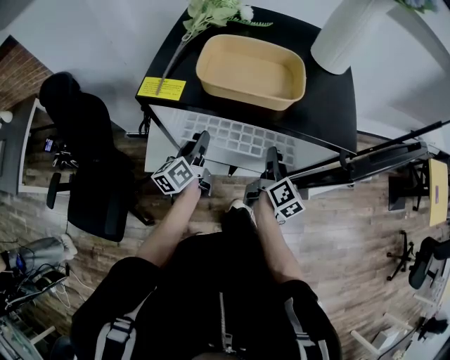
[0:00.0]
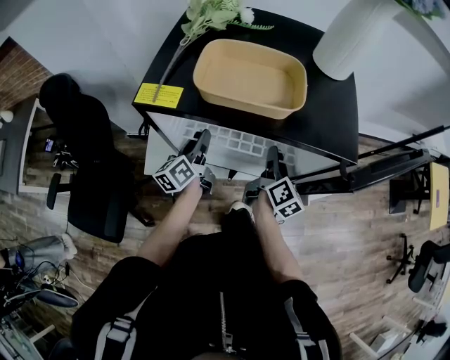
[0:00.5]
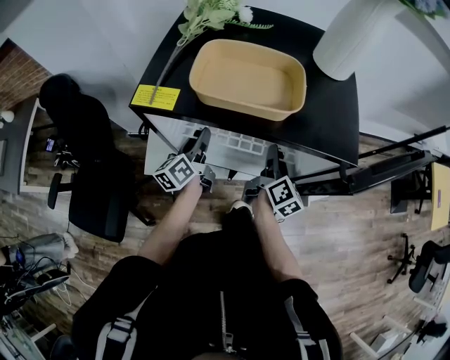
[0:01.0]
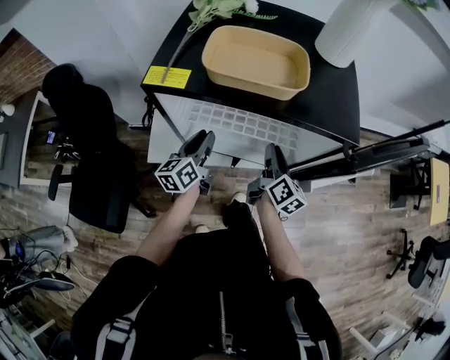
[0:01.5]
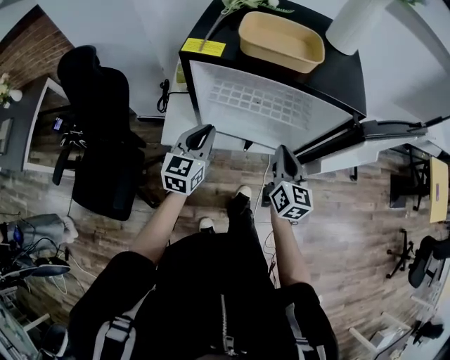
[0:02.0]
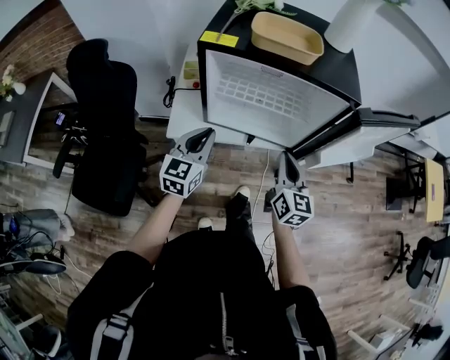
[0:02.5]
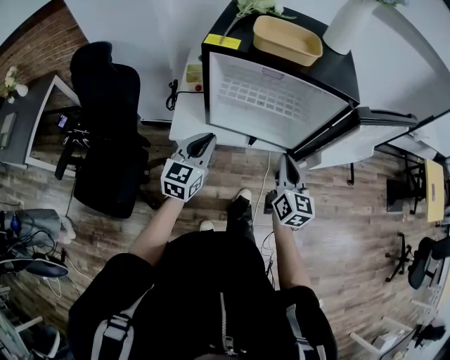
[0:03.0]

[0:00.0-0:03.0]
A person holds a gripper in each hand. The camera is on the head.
0:00.0 to 0:01.5: The grippers make only small movements.
0:01.5 to 0:03.0: The left gripper travels backward and upward by roughly 20 cm, turns by approximately 30 degrees, and closes its fingers, while the right gripper is displaced backward by about 15 cm, rotates some 30 degrees, and closes its fingers.

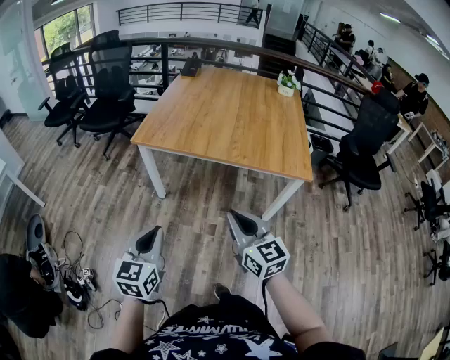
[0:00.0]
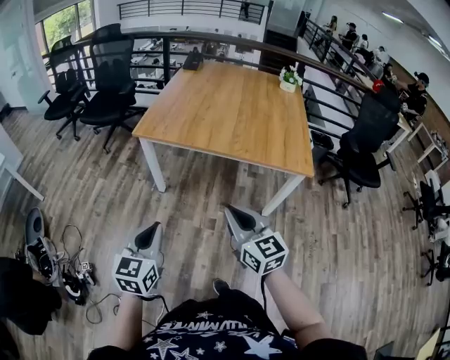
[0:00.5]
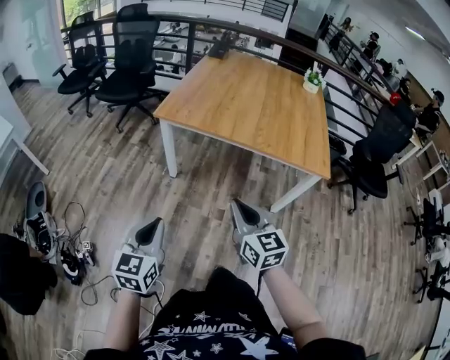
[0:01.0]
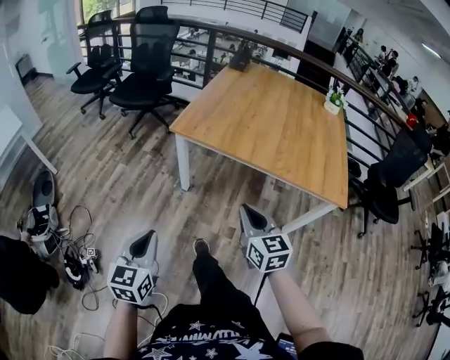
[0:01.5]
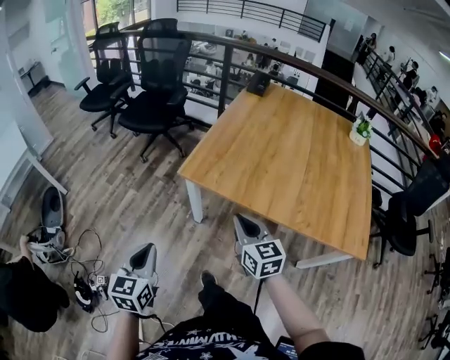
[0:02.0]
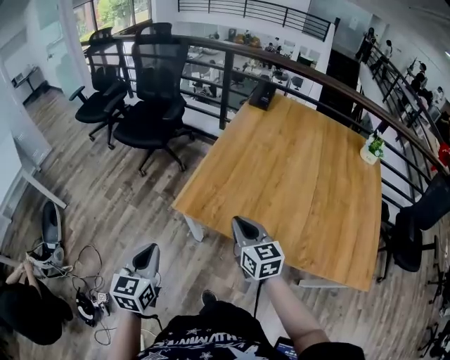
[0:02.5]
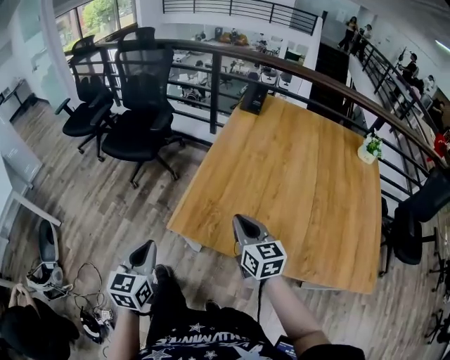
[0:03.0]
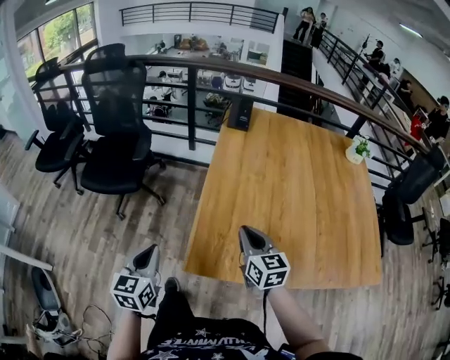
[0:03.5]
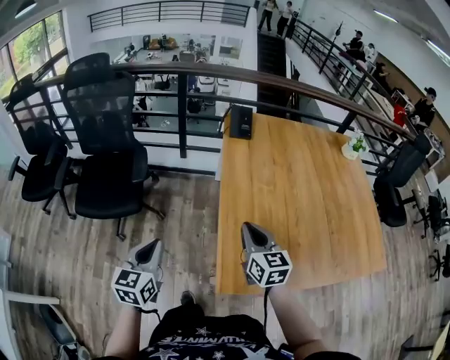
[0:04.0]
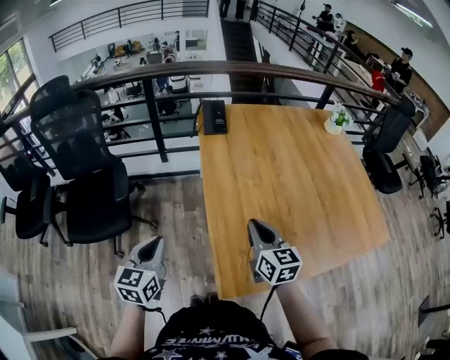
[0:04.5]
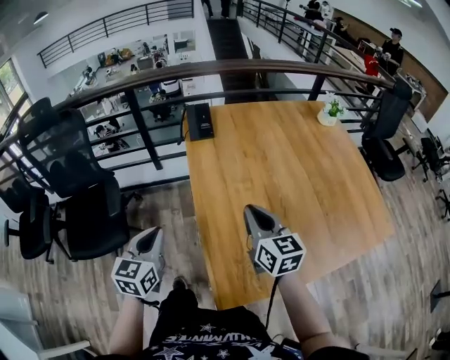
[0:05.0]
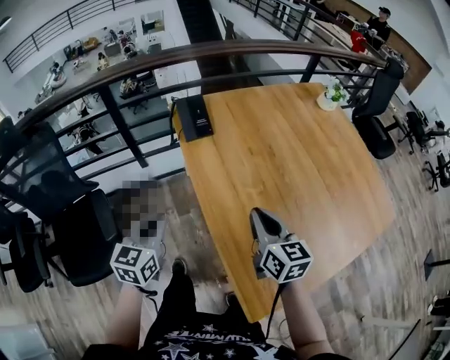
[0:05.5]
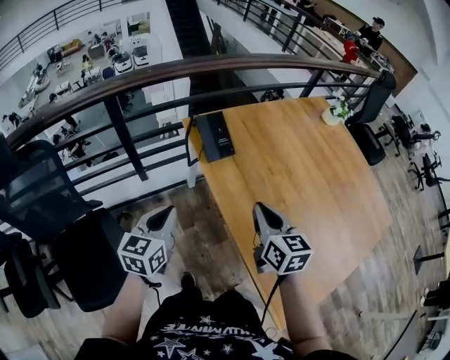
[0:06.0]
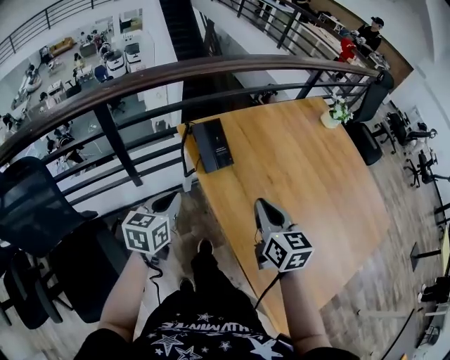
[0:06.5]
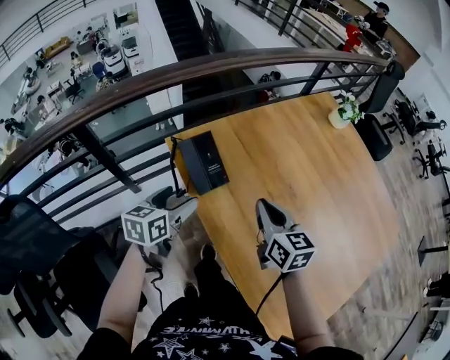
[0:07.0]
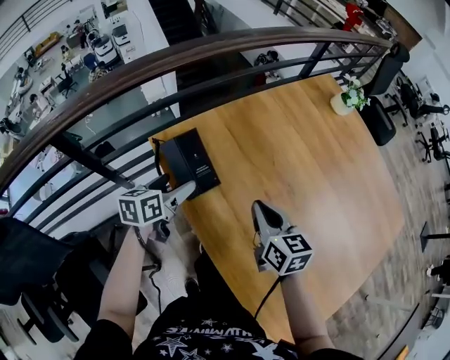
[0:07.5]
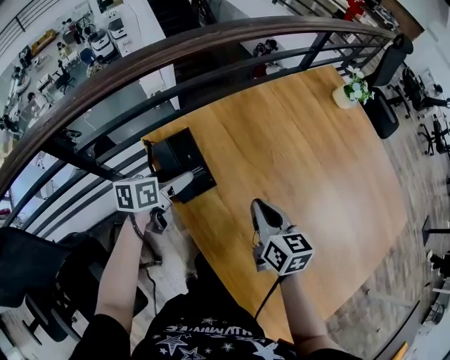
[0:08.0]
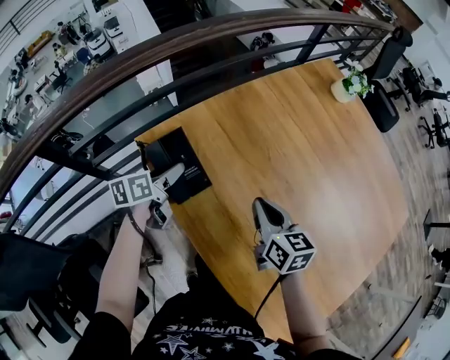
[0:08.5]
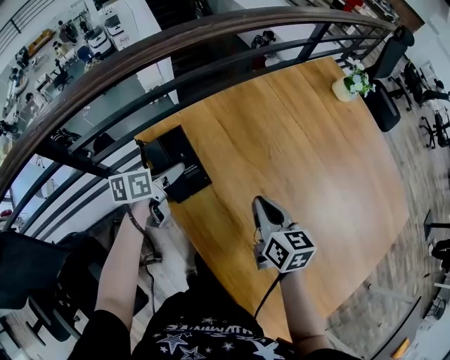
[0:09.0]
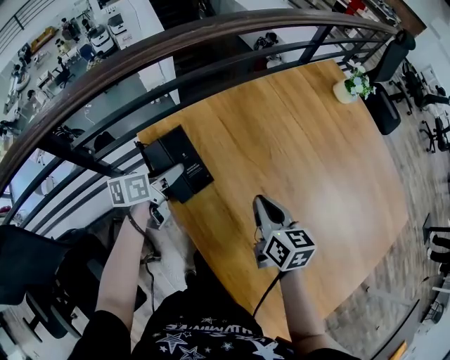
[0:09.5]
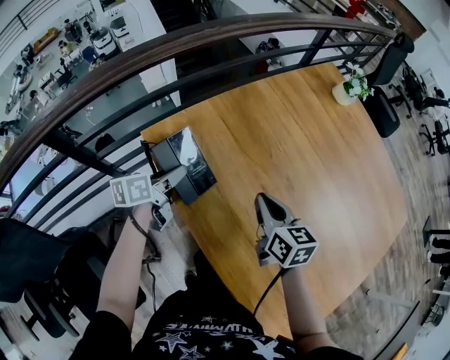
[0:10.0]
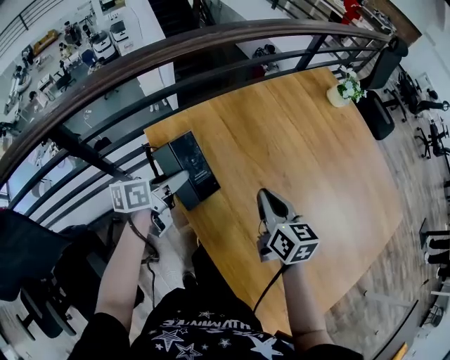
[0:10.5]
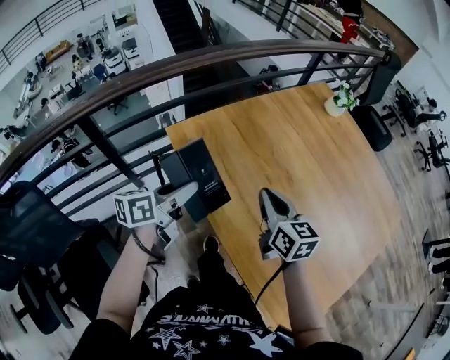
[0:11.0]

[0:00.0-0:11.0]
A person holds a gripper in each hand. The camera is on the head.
0:00.0 to 0:02.0: The grippers both shift forward and to the left by roughly 30 cm.
0:02.0 to 0:03.5: Both grippers move forward, about 40 cm. The right gripper changes its angle by some 20 degrees.
0:03.5 to 0:05.5: The left gripper shifts by approximately 40 cm, and turns by approximately 40 degrees. The right gripper shifts by roughly 25 cm, and rotates roughly 30 degrees.
0:05.5 to 0:07.5: The grippers both shift forward by some 30 cm. The left gripper changes its angle by roughly 30 degrees, and opens its fingers.
0:07.5 to 0:09.0: The left gripper changes place by roughly 5 cm, and closes up.
0:09.0 to 0:11.0: The right gripper is displaced upward and backward by some 10 cm, while the left gripper is displaced backward and upward by roughly 20 cm.

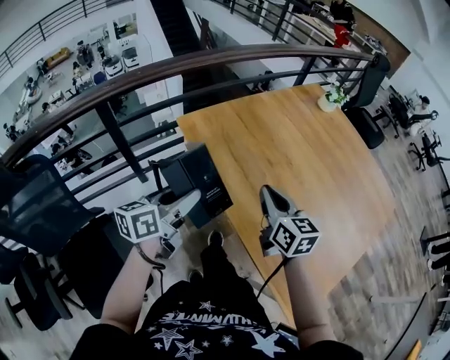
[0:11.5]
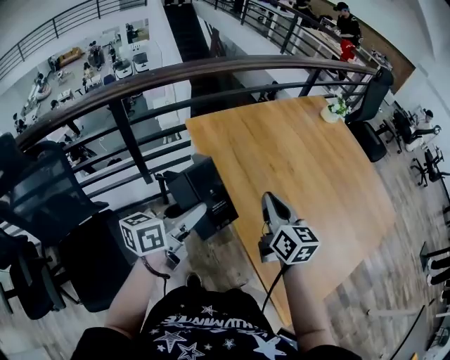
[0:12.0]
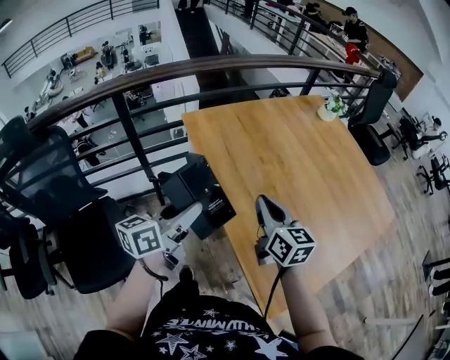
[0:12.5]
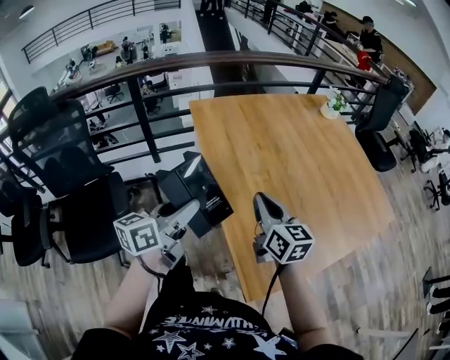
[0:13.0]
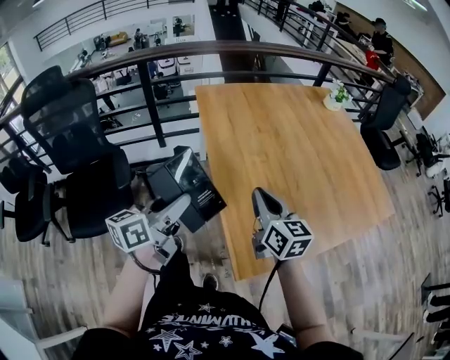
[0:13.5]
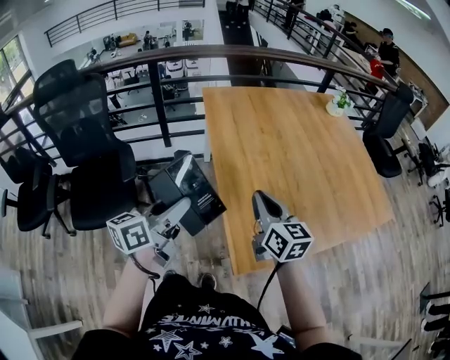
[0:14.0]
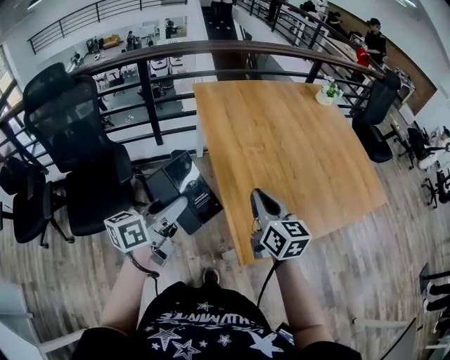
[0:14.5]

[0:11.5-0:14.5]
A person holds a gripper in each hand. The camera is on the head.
0:11.5 to 0:13.0: The grippers both shift backward and to the right by some 25 cm.
0:13.0 to 0:14.5: Both grippers travel together backward, about 15 cm.

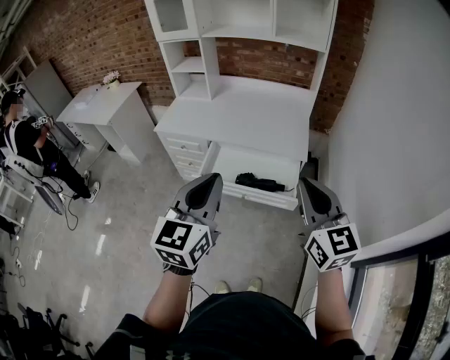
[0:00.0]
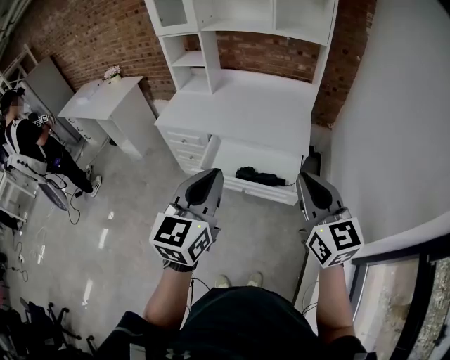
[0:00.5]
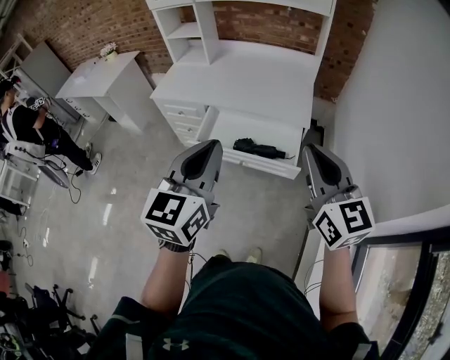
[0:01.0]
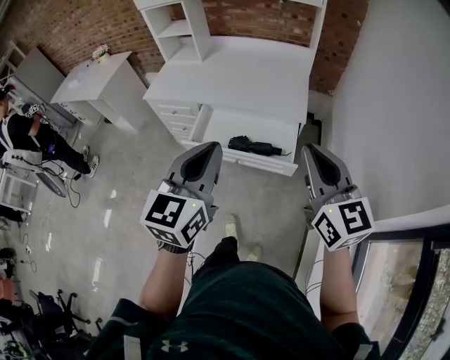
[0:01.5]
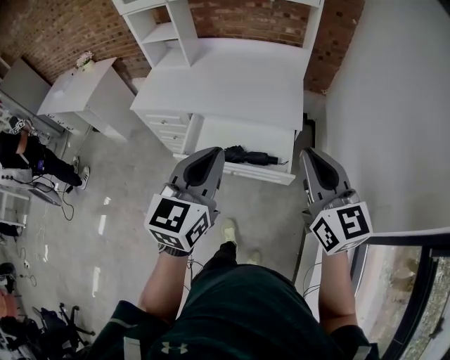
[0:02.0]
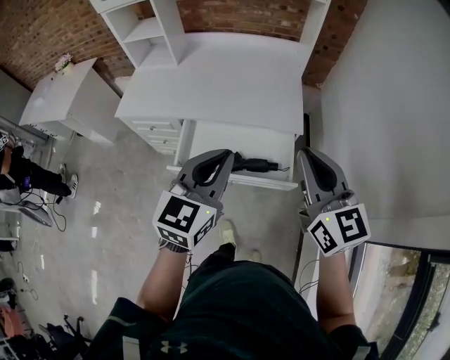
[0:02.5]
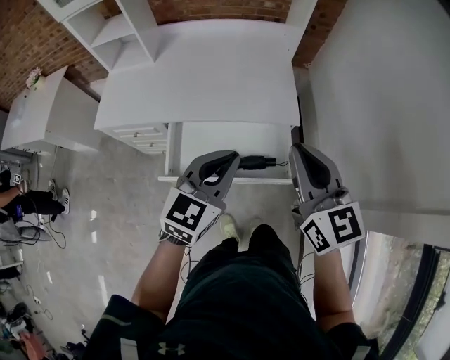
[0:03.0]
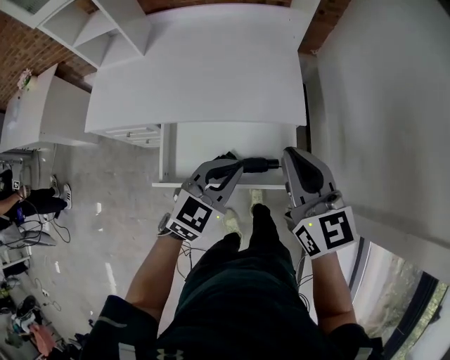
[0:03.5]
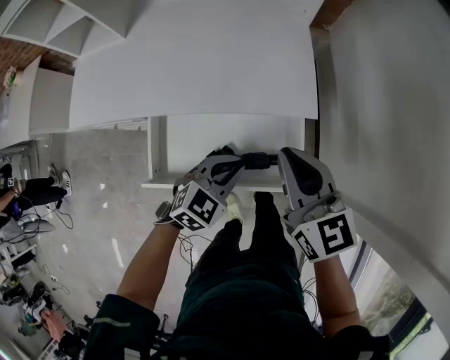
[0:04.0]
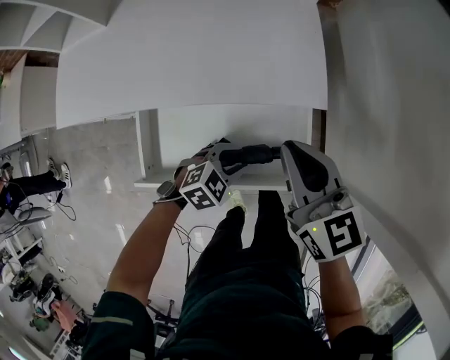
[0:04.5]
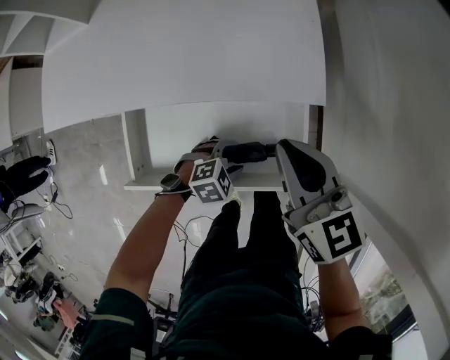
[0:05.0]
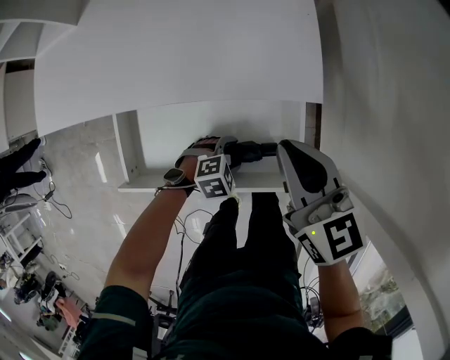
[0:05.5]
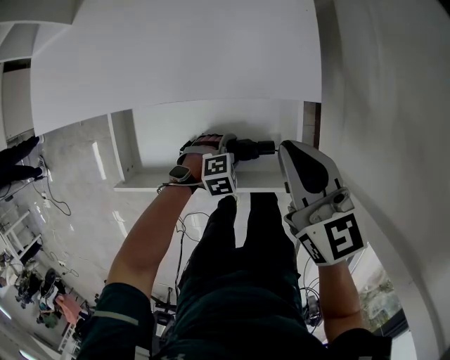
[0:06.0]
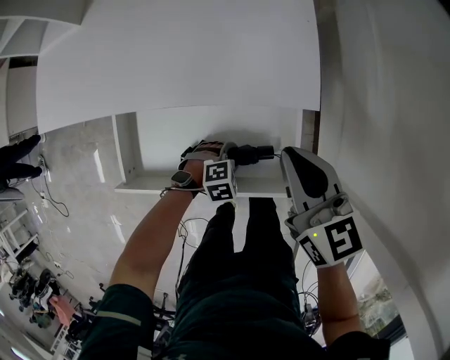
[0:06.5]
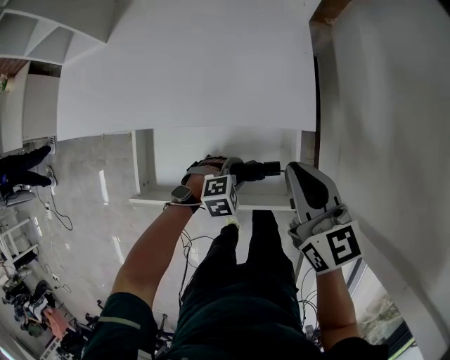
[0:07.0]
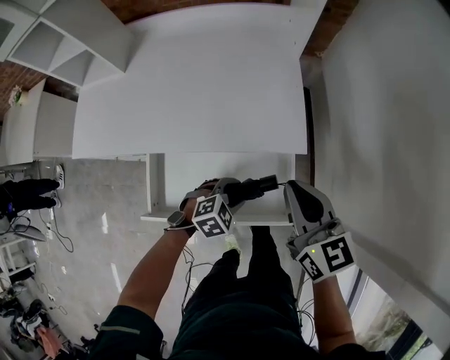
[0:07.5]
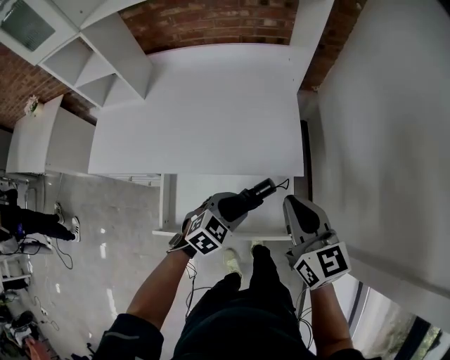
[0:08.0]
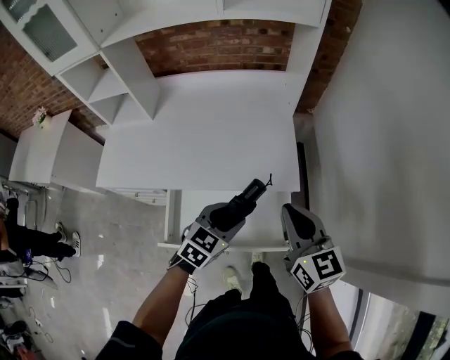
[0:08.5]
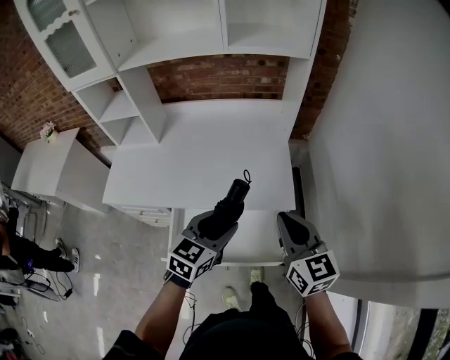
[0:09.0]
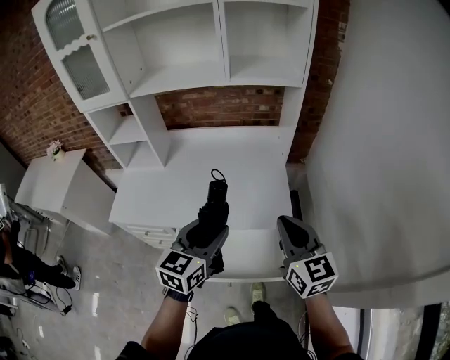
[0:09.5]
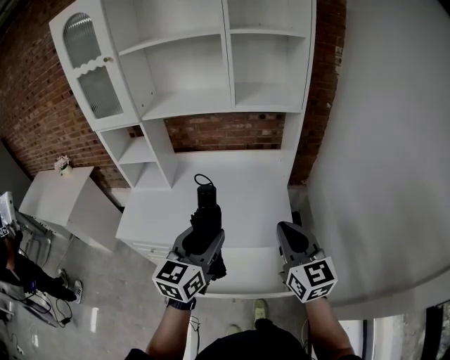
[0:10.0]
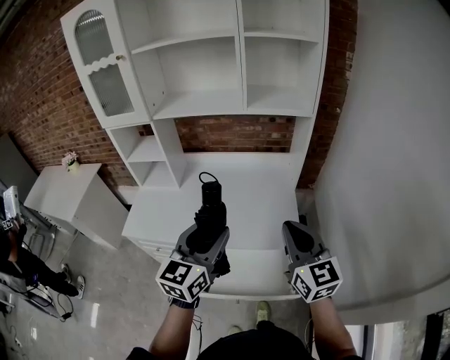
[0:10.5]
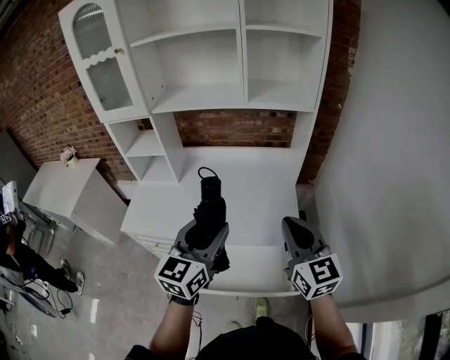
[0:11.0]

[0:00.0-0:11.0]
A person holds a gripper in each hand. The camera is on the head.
0:00.0 to 0:02.0: Both grippers travel together forward and to the right, about 10 cm.
0:02.0 to 0:03.5: The left gripper goes roughly 30 cm downward and forward, and turns by about 40 degrees, while the right gripper moves forward and downward, about 25 cm.
0:03.5 to 0:05.5: The left gripper goes roughly 35 cm downward, angles its fingers downward, by about 40 degrees, and opens. Meanwhile the right gripper is displaced downward by about 20 cm.
0:05.5 to 0:07.5: The right gripper moves upward, approximately 10 cm; the left gripper is displaced upward by some 15 cm.
0:07.5 to 0:09.0: The right gripper goes some 10 cm upward, while the left gripper goes some 25 cm upward, and tips its fingers upward by about 30 degrees.
0:09.0 to 0:11.0: The left gripper moves upward and to the left, some 20 cm, and changes its angle by approximately 30 degrees. The right gripper shifts approximately 10 cm upward.
